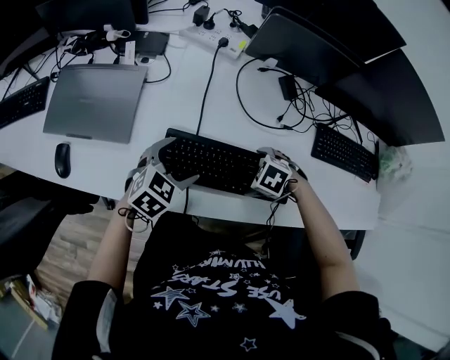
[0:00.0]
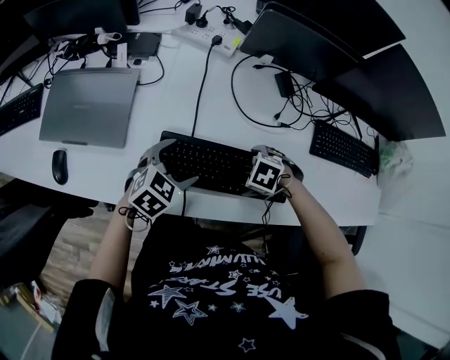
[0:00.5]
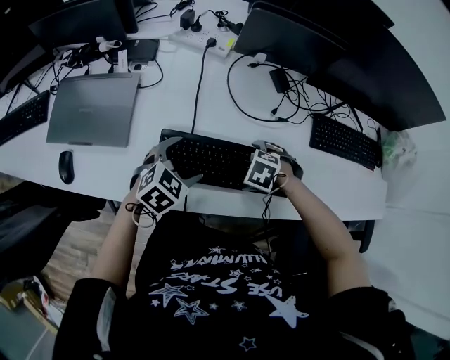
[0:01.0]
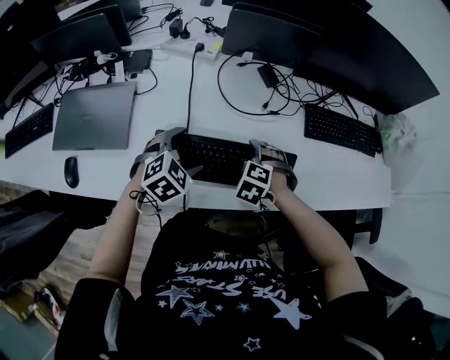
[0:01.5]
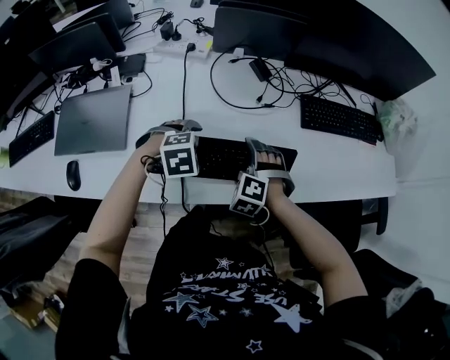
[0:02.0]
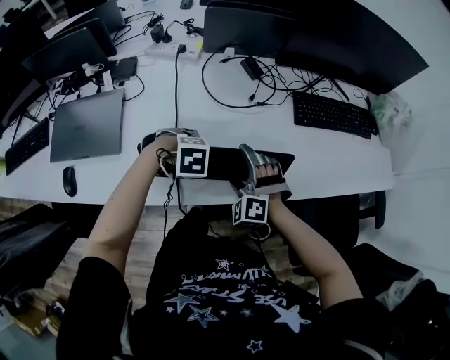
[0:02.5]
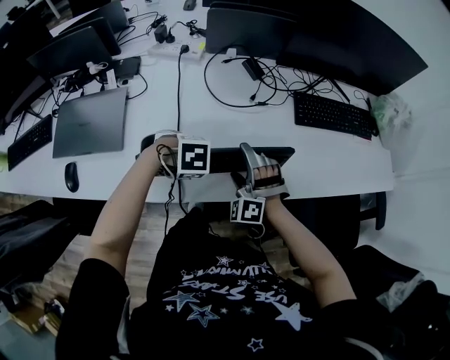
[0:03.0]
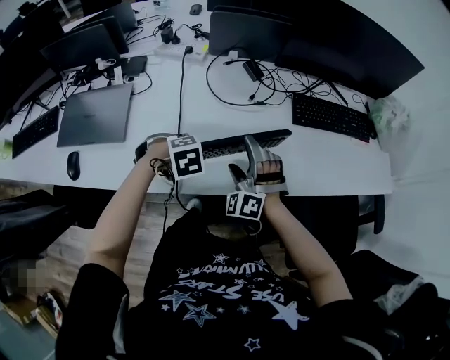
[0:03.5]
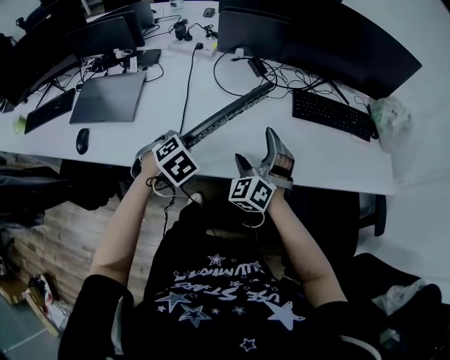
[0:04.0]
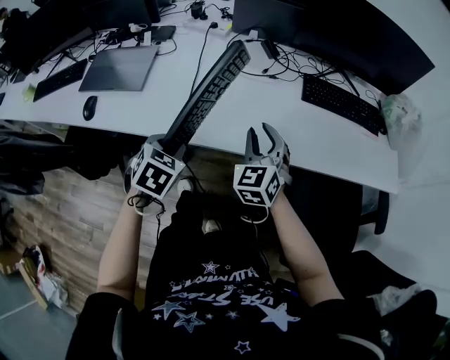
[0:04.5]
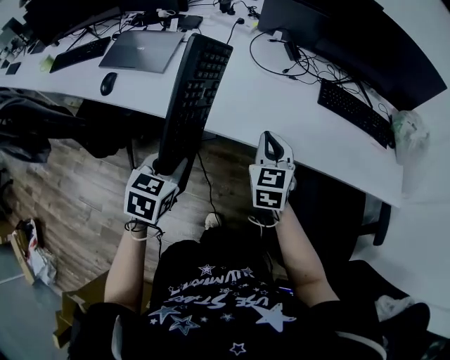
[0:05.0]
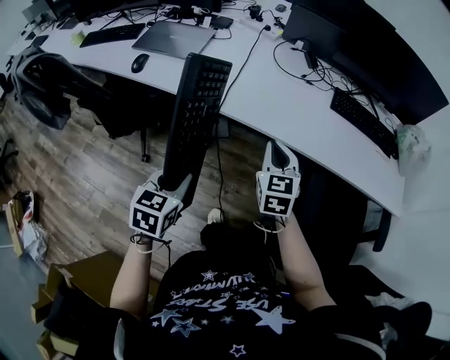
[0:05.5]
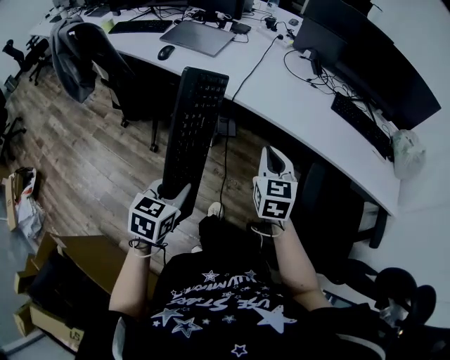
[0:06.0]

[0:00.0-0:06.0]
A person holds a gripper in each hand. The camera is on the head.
0:00.0 to 0:02.0: The left gripper changes place by about 10 cm, and swivels roughly 50 degrees. Meanwhile the right gripper shifts by some 5 cm, and turns by roughly 40 degrees.
0:02.0 to 0:04.0: The left gripper changes place by roughly 10 cm, turns by about 40 degrees, and closes. The right gripper shifts approximately 10 cm upward, and tilts its fingers roughly 40 degrees upward.
0:04.0 to 0:06.0: The left gripper travels backward by some 50 cm, and rotates around the line of its fingers by about 50 degrees, counterclockwise from behind. Meanwhile the right gripper goes approximately 35 cm backward, changes its angle by approximately 50 degrees, and closes.

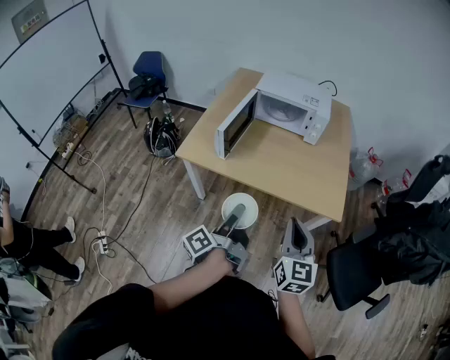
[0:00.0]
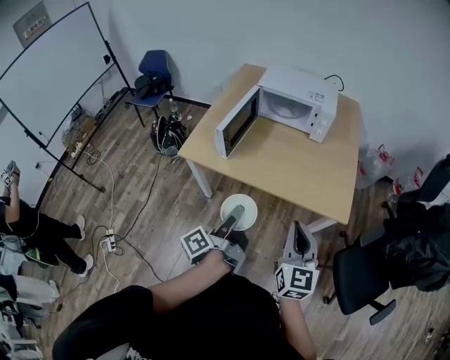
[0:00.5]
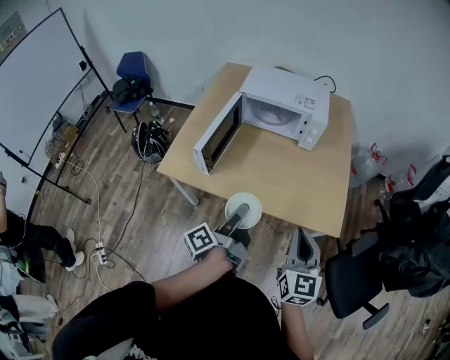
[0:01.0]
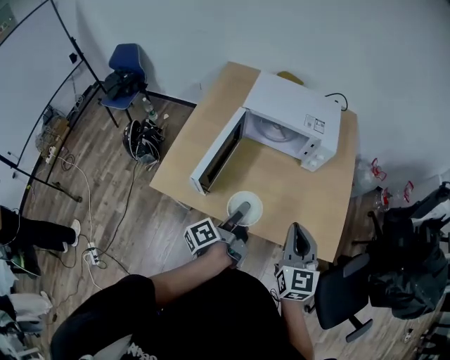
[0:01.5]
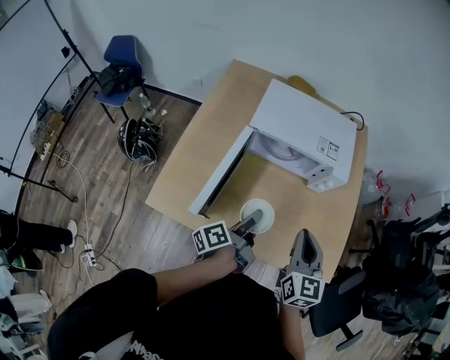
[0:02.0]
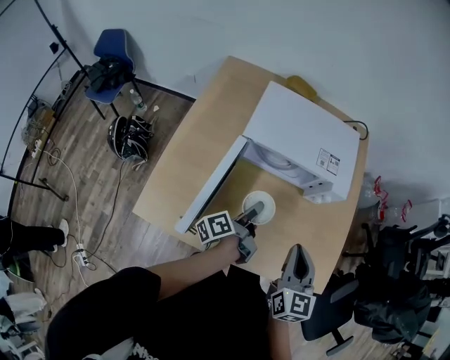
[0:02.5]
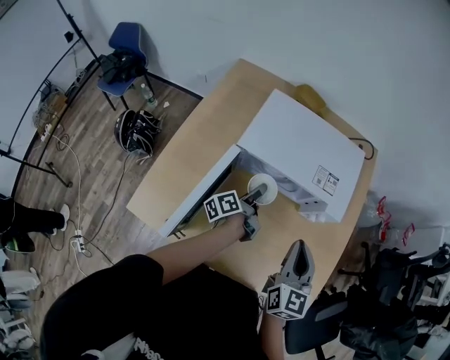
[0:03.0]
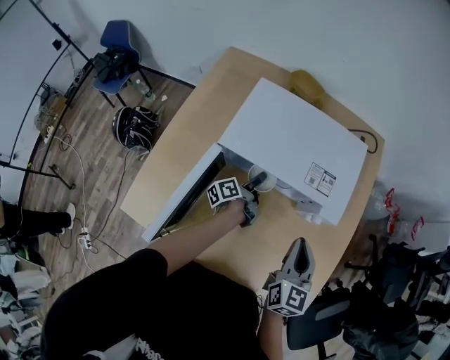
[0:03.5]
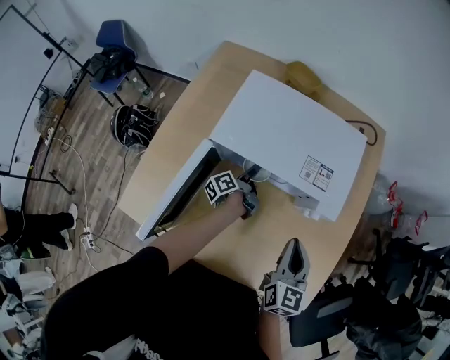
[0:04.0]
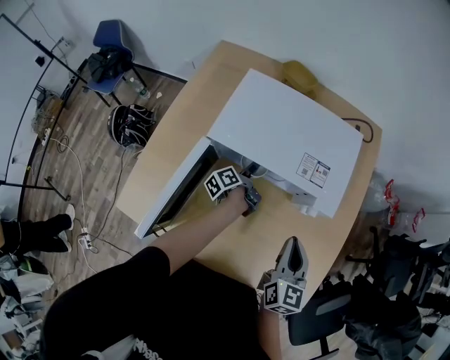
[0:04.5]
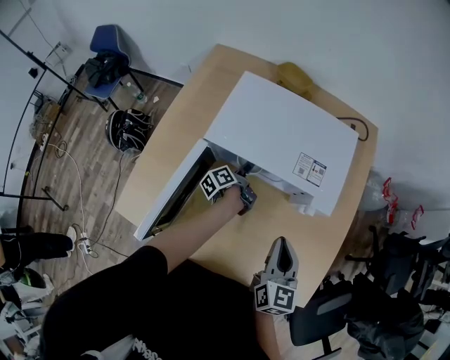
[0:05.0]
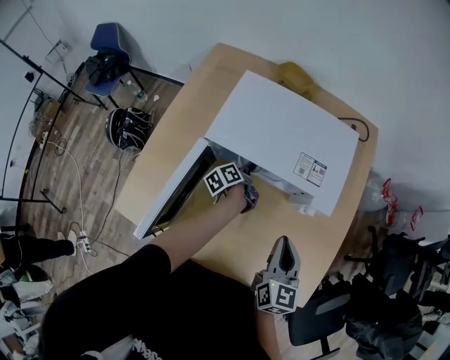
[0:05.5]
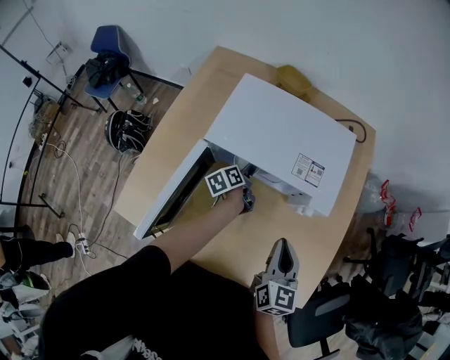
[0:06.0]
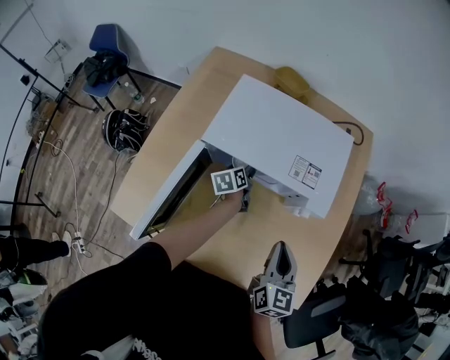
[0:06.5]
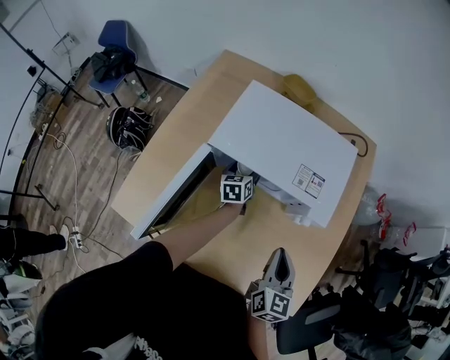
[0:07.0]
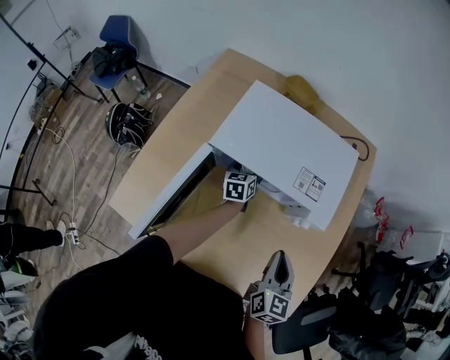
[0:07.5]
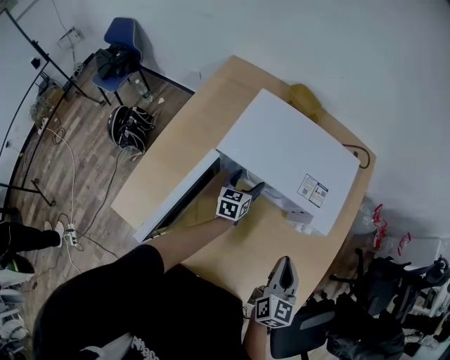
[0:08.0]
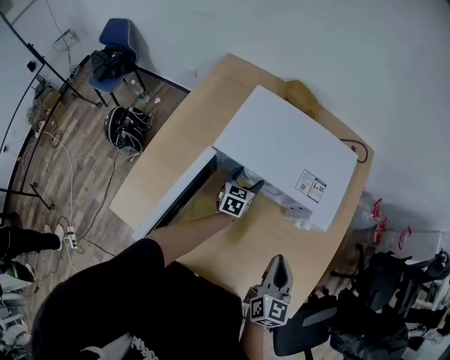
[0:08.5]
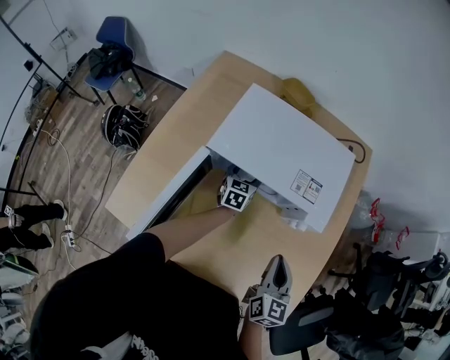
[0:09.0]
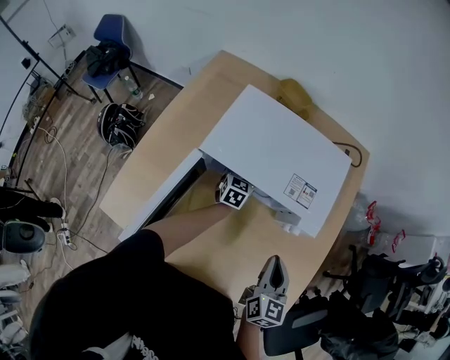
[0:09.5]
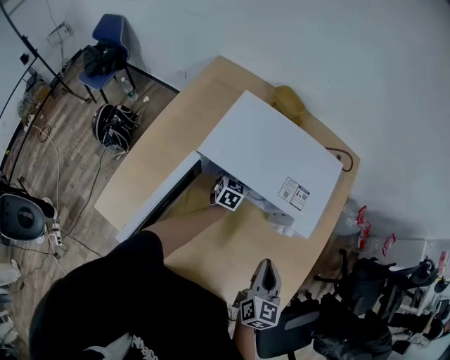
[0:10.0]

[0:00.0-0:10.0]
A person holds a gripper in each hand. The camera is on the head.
0:00.0 to 0:02.0: Both grippers travel together forward, approximately 35 cm. The left gripper turns by roughly 20 degrees.
0:02.0 to 0:04.0: The right gripper heads forward, downward and to the right, covering roughly 20 cm, while the left gripper travels forward and downward by some 35 cm.
0:04.0 to 0:06.0: The left gripper swivels roughly 30 degrees.
0:06.0 to 0:08.0: The left gripper rolls clockwise, seen from behind, by about 40 degrees.
0:08.0 to 0:10.0: The left gripper heads forward, covering roughly 5 cm.

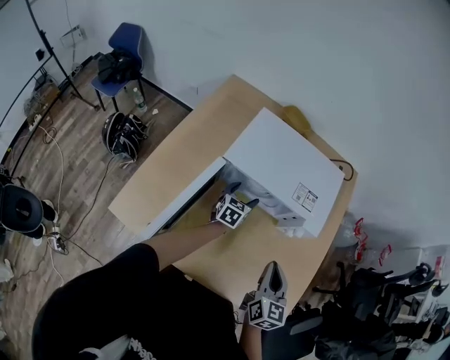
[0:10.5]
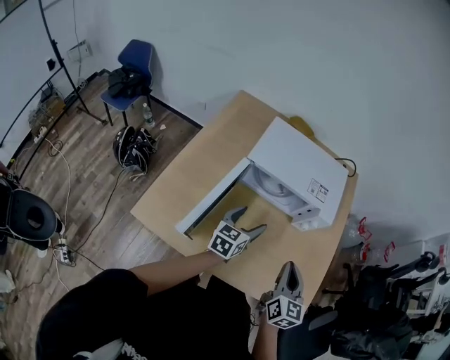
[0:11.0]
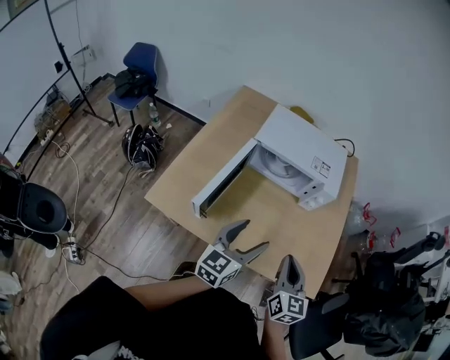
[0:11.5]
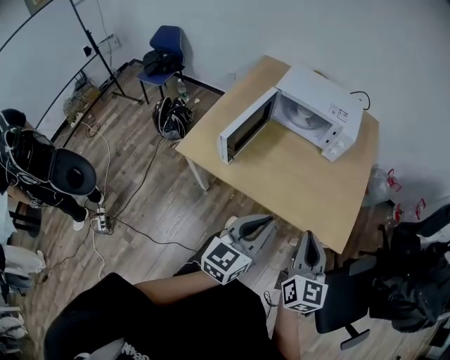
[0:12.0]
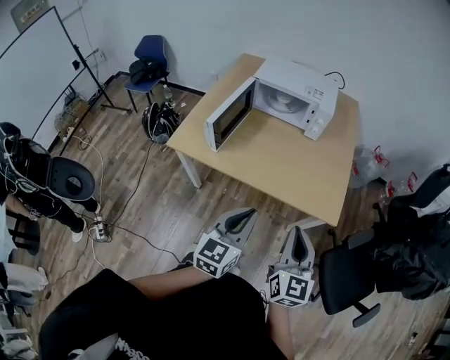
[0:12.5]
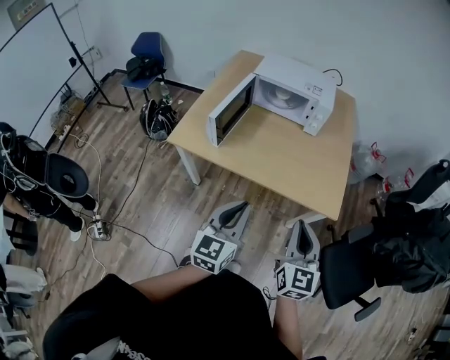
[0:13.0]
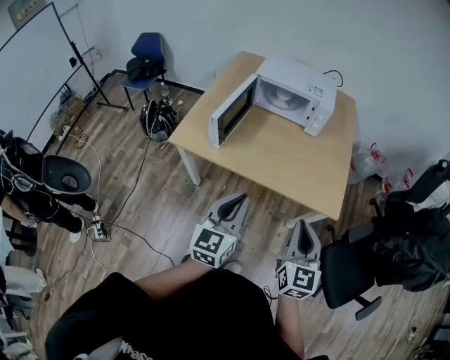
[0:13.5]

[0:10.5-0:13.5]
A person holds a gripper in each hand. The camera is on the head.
0:10.5 to 0:12.0: The left gripper shifts approximately 60 cm backward and upward, changes its angle by approximately 30 degrees, and closes. Meanwhile the right gripper travels backward by about 30 cm.
0:12.0 to 0:13.5: The two grippers go roughly 10 cm backward.

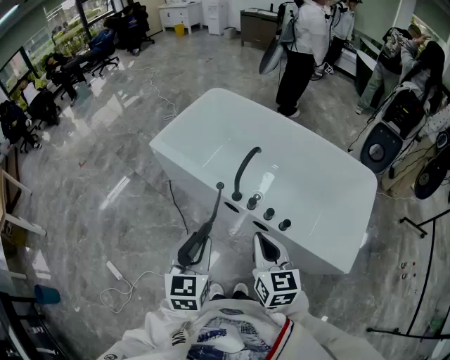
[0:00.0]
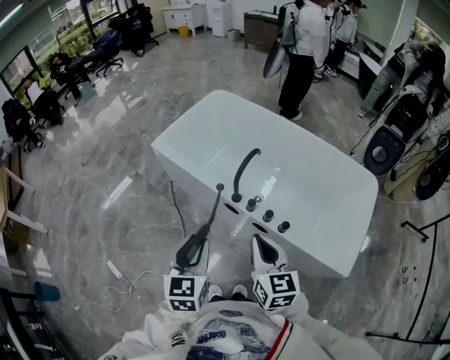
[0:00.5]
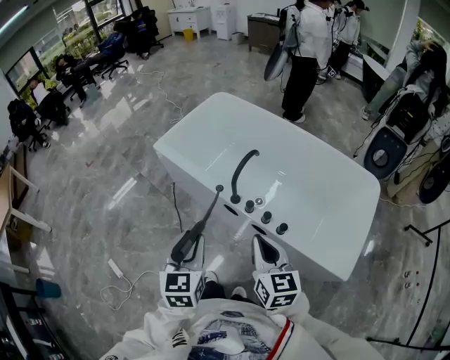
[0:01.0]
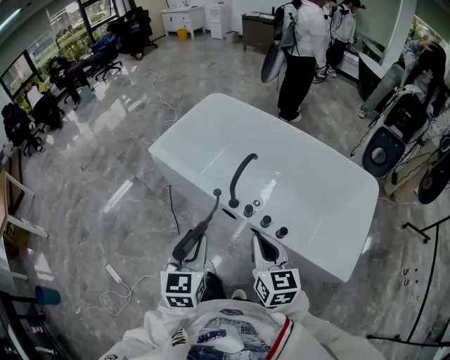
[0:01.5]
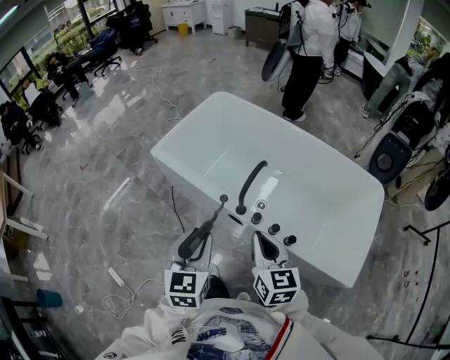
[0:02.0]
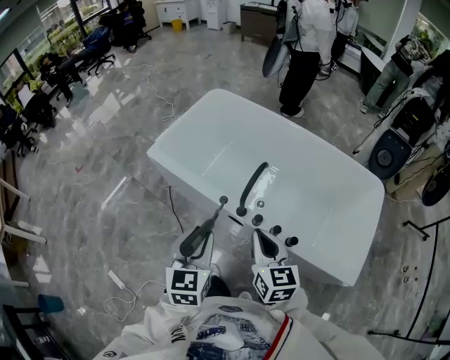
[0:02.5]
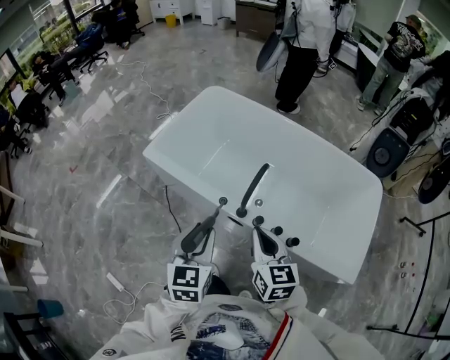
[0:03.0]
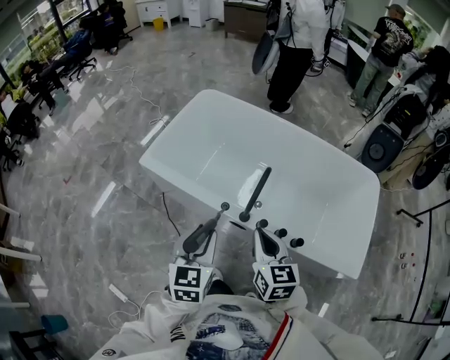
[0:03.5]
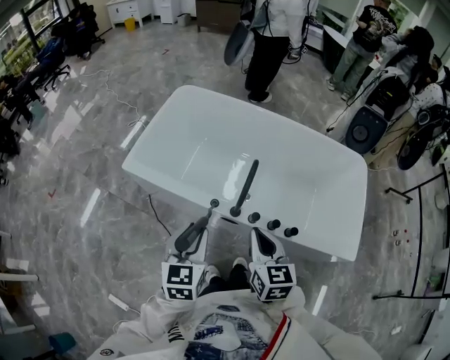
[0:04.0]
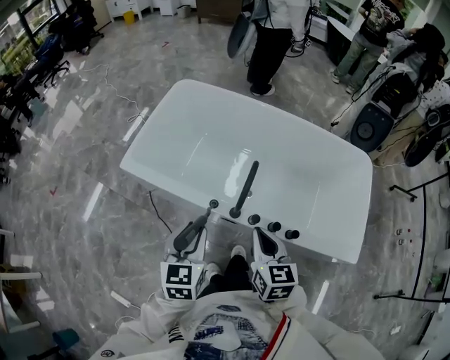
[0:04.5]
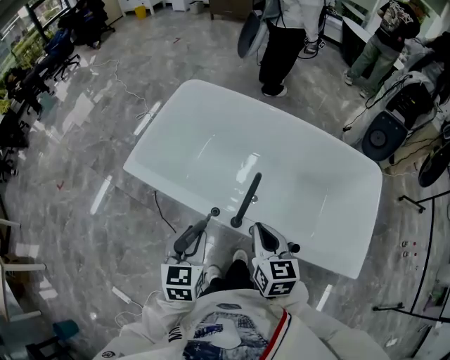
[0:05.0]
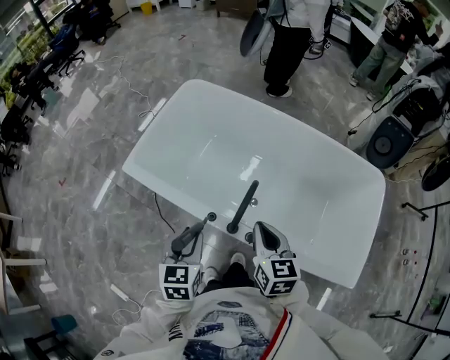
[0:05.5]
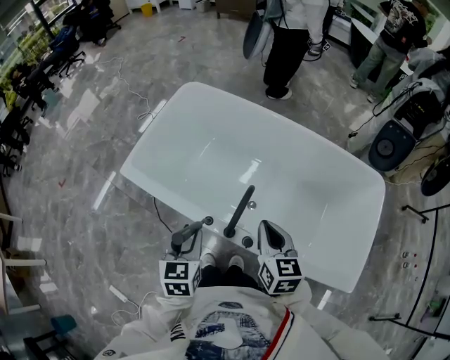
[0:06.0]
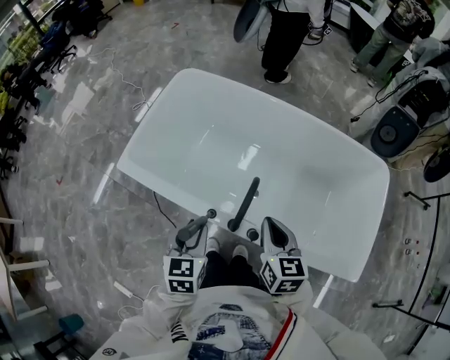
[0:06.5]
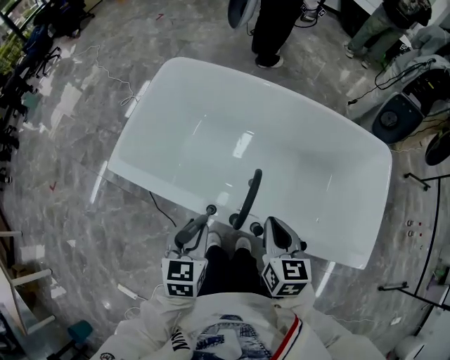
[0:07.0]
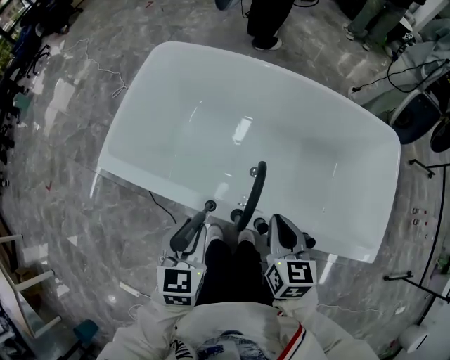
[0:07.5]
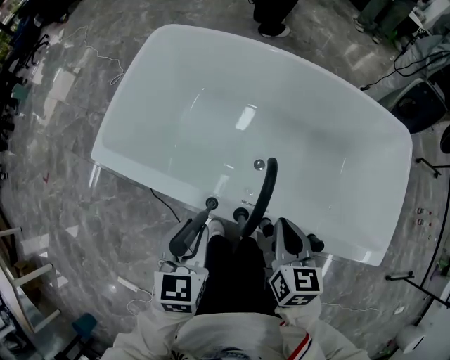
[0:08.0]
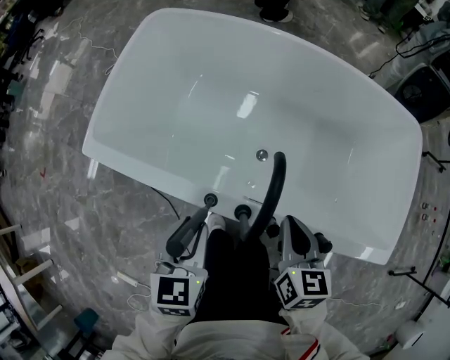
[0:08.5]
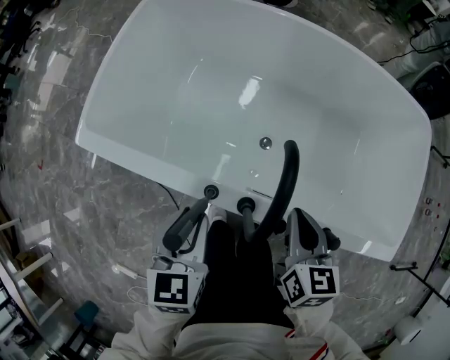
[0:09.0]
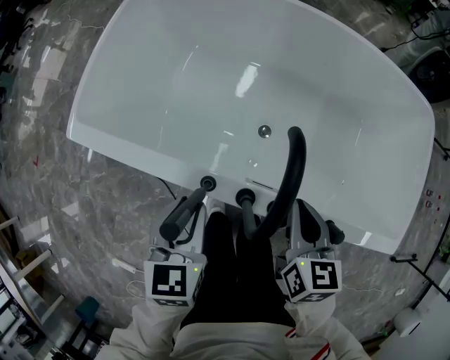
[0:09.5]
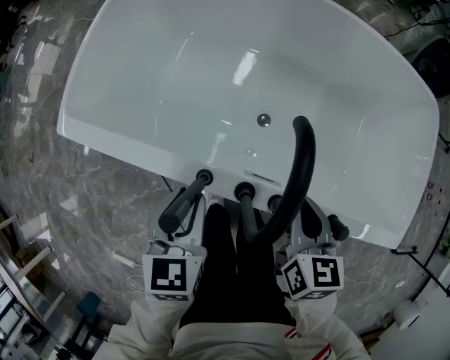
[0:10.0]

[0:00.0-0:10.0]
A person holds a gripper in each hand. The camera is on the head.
0:00.0 to 0:02.0: Both grippers move forward, some 10 cm.
0:02.0 to 0:04.0: The left gripper goes about 10 cm forward and to the left; the right gripper shifts approximately 5 cm forward.
0:04.0 to 0:06.0: The right gripper moves forward and to the right, roughly 20 cm, while the left gripper moves forward and downward, roughly 15 cm.
0:06.0 to 0:08.0: Both grippers move downward, about 10 cm.
0:08.0 to 0:10.0: The two grippers go approximately 10 cm downward.
